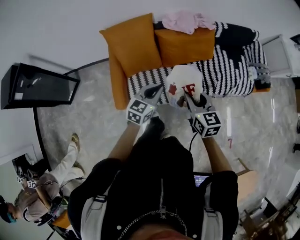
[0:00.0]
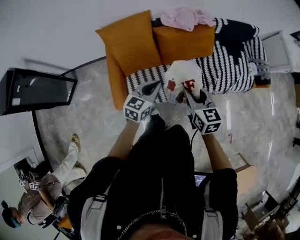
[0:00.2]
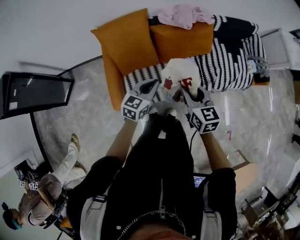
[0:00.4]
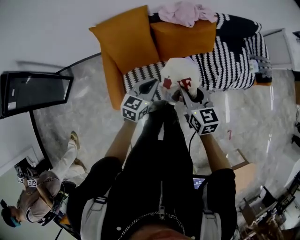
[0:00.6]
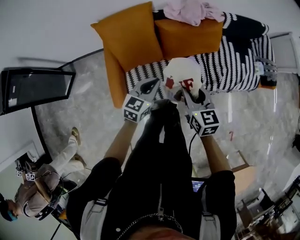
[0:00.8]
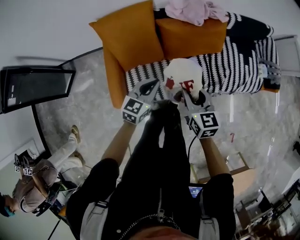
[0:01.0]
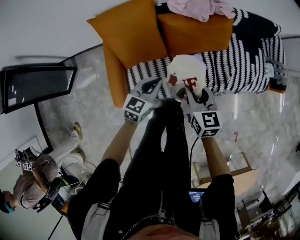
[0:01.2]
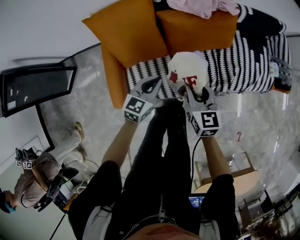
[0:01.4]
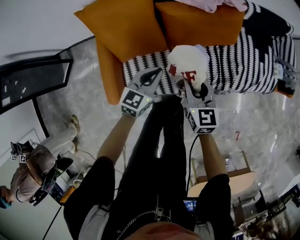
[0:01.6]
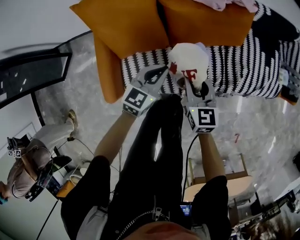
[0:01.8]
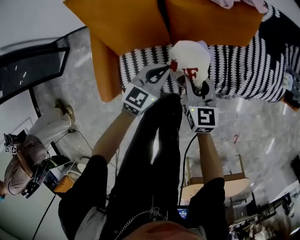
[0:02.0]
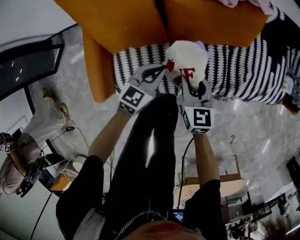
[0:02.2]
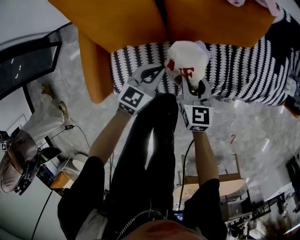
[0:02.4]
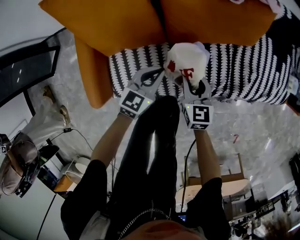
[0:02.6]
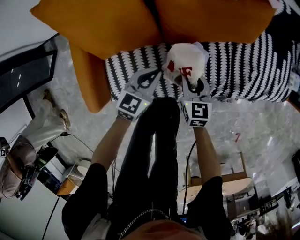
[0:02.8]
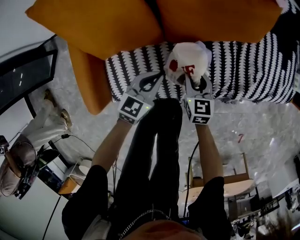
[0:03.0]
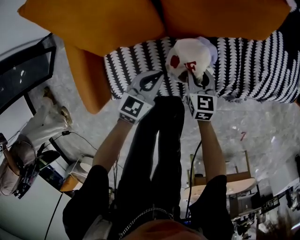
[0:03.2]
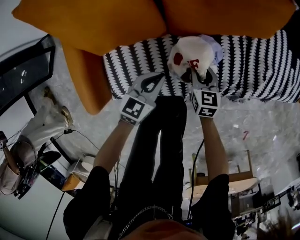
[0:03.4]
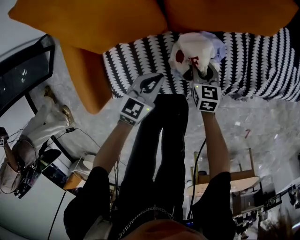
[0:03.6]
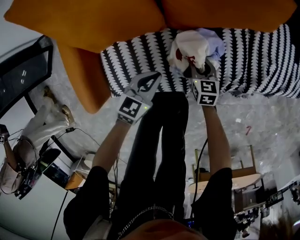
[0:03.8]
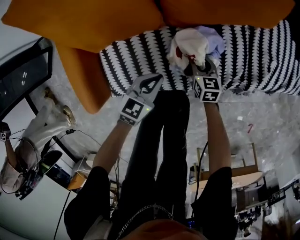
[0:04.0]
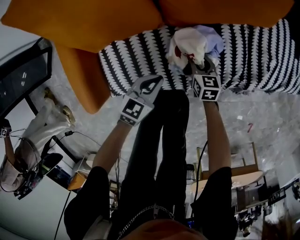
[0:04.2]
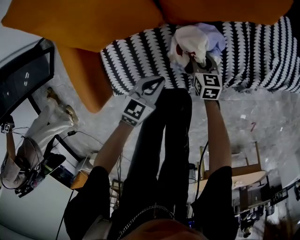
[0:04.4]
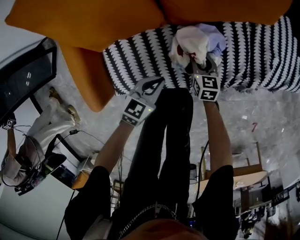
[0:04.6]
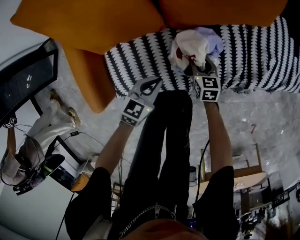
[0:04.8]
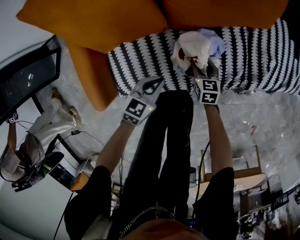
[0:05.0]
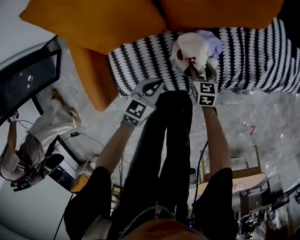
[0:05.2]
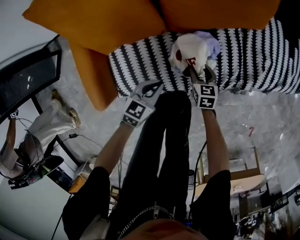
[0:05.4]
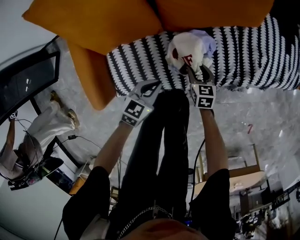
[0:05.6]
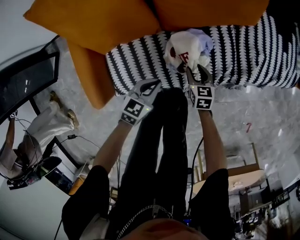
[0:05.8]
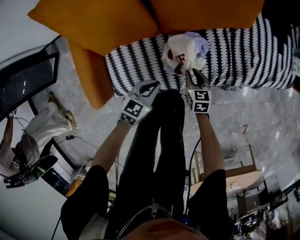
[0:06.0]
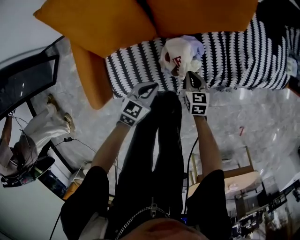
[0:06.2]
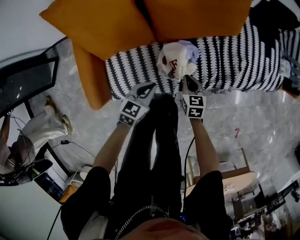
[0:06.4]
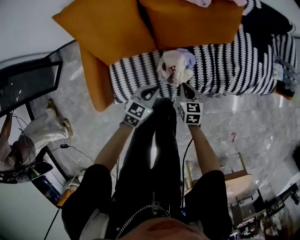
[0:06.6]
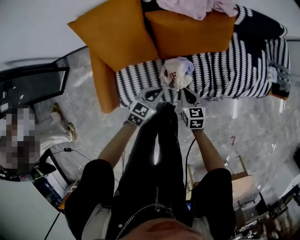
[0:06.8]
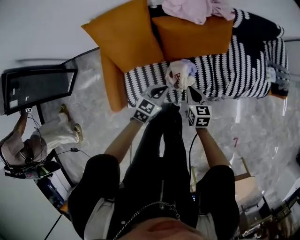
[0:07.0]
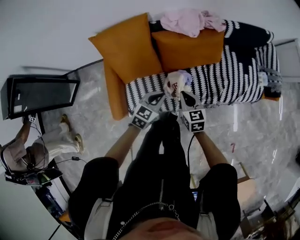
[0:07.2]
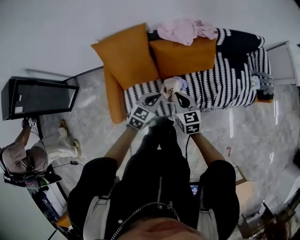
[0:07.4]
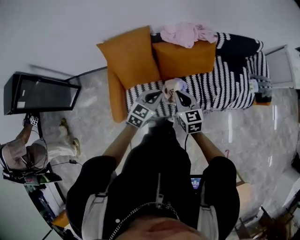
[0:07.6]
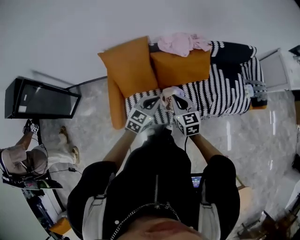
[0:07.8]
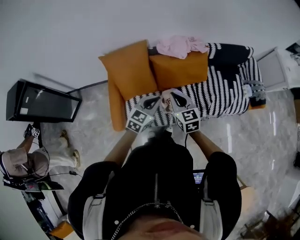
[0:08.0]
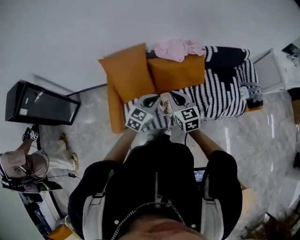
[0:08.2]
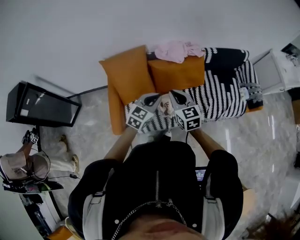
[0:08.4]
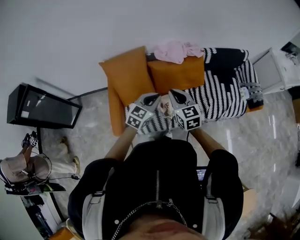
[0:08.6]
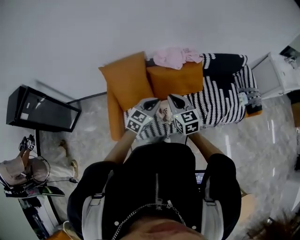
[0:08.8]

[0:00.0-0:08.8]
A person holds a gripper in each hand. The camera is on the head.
0.0 to 1.4 s: Both grippers move downward and forward, approximately 15 cm.
1.4 to 3.0 s: Both grippers move downward, roughly 30 cm.
3.0 to 4.4 s: The left gripper travels backward and downward by some 10 cm, while the right gripper travels downward by approximately 15 cm.
4.4 to 5.8 s: The grippers both shift upward by roughly 10 cm.
5.8 to 7.4 s: The grippers both shift upward by about 40 cm. The right gripper closes up.
7.4 to 8.8 s: Both grippers travel together upward, about 10 cm.

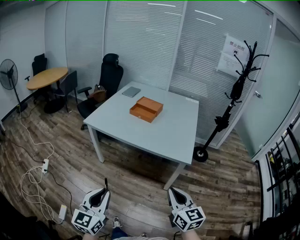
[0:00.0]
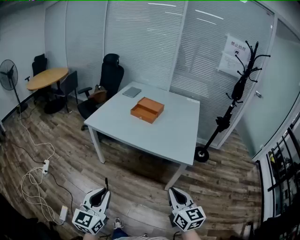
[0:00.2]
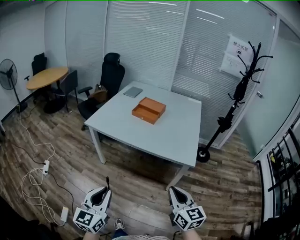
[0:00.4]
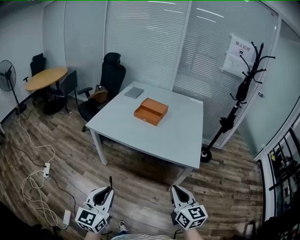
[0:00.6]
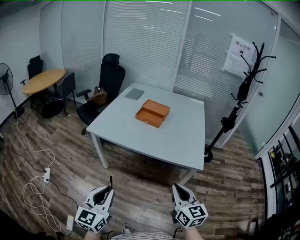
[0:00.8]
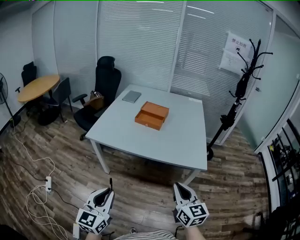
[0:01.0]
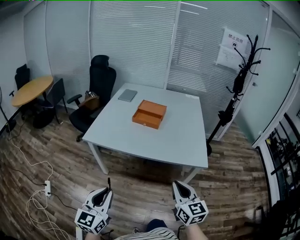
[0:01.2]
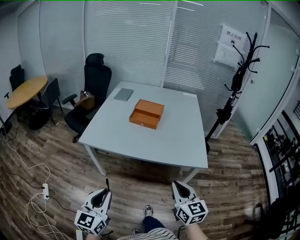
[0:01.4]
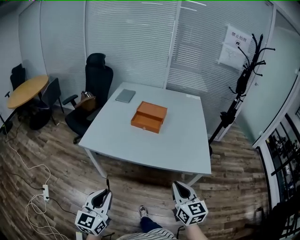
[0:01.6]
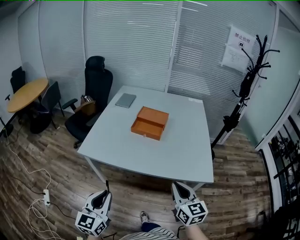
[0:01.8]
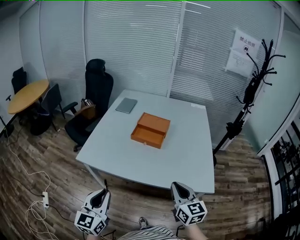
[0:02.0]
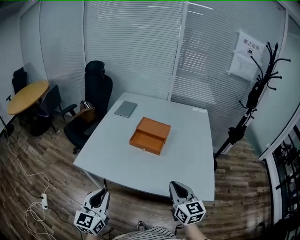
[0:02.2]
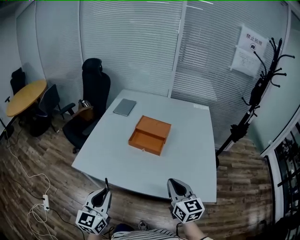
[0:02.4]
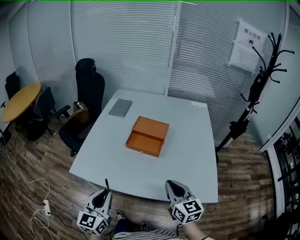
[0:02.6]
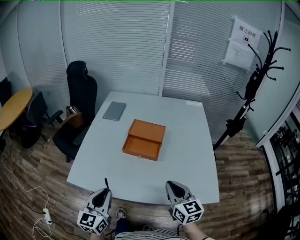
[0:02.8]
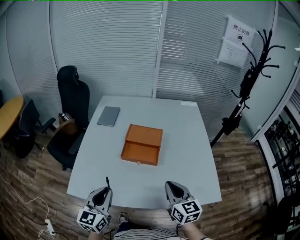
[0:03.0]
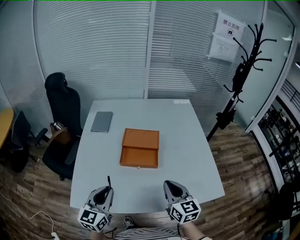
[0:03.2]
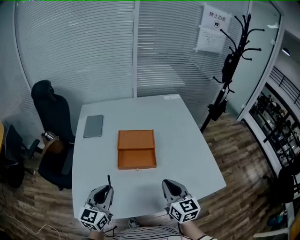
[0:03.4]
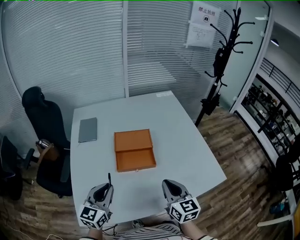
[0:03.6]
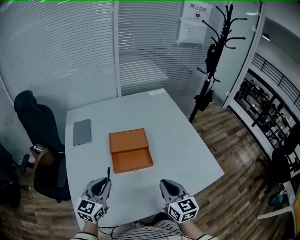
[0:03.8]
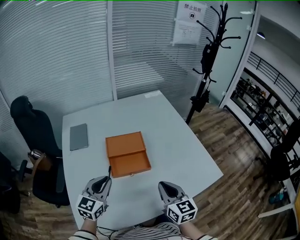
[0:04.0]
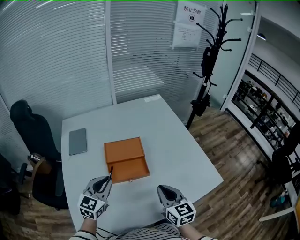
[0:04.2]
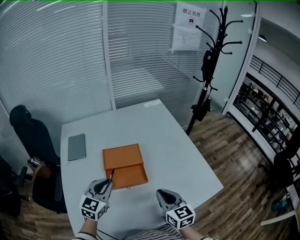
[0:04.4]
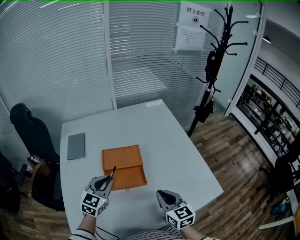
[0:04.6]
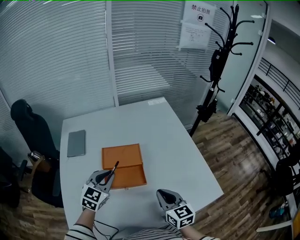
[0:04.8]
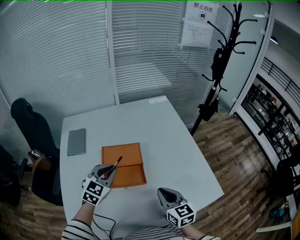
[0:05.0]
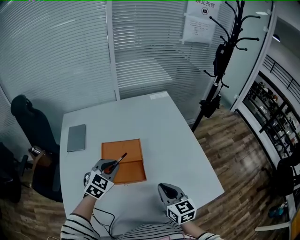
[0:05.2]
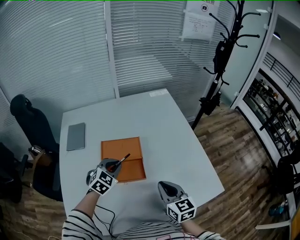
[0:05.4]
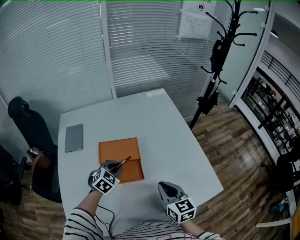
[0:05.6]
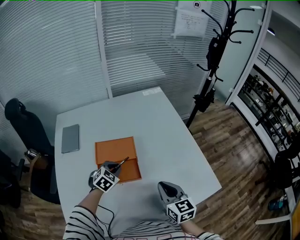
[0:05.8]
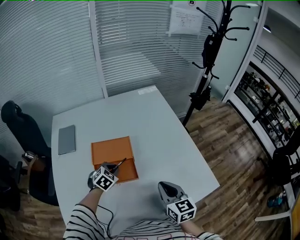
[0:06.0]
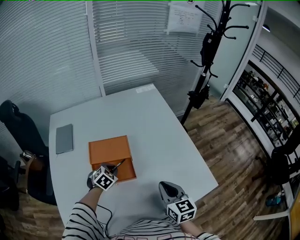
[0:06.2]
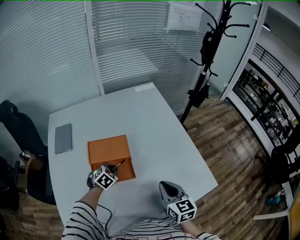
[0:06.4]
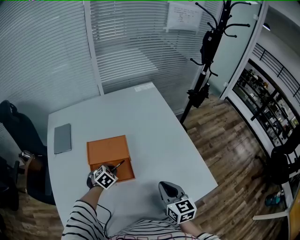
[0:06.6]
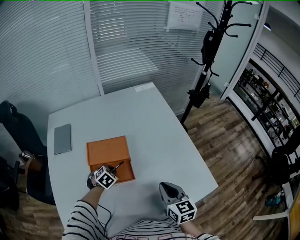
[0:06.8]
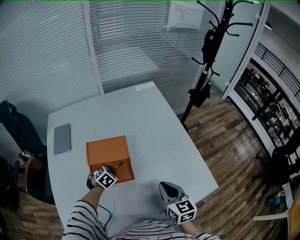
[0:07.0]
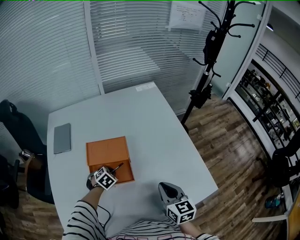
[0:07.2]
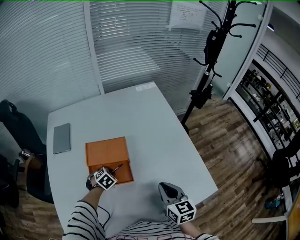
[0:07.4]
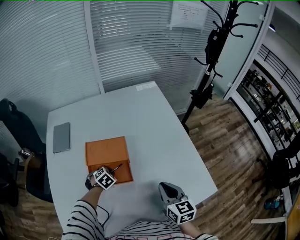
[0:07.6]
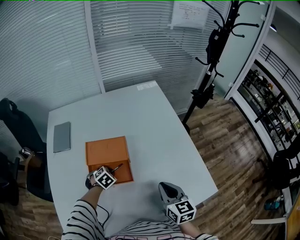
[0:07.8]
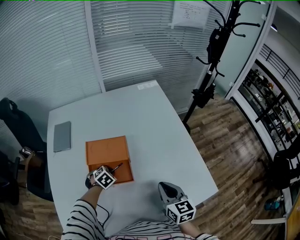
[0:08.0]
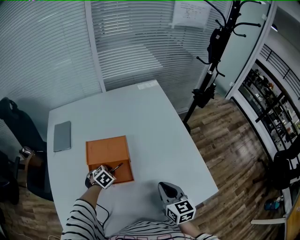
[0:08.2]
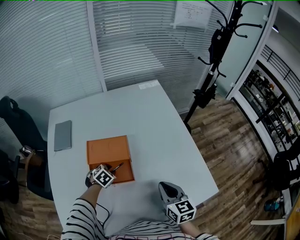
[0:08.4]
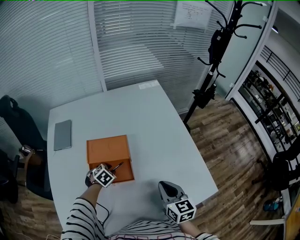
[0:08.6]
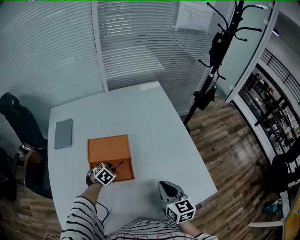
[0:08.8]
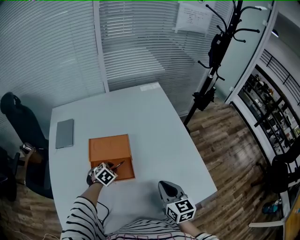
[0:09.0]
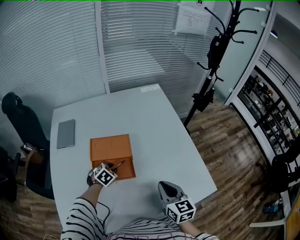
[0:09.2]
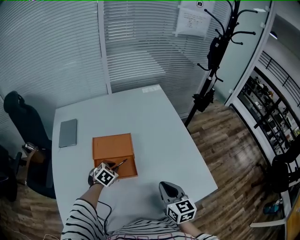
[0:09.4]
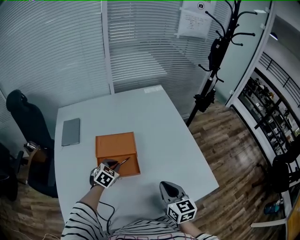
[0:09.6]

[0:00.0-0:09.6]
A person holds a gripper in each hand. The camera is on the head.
0.0 to 1.6 s: Both grippers travel together forward and to the left, about 25 cm.
1.6 to 3.2 s: Both grippers move forward, roughly 40 cm.
3.2 to 4.8 s: The left gripper goes some 25 cm forward, and swivels roughly 30 degrees; the right gripper goes some 10 cm forward.
4.8 to 6.4 s: The right gripper travels to the right by some 5 cm. Meanwhile the left gripper goes about 20 cm downward, and tilts its fingers about 40 degrees downward.
6.4 to 8.0 s: The grippers stay close to where they were, moving slightly.
8.0 to 9.6 s: The left gripper shifts some 10 cm upward, and swivels approximately 20 degrees, while the right gripper shifts some 5 cm backward.

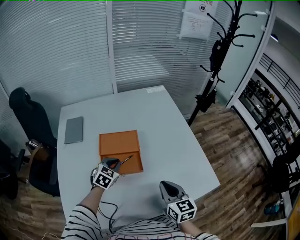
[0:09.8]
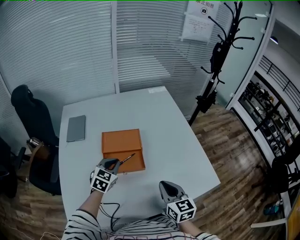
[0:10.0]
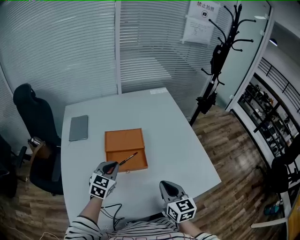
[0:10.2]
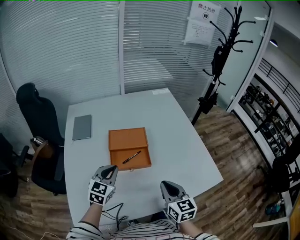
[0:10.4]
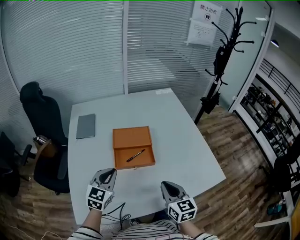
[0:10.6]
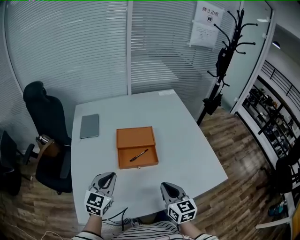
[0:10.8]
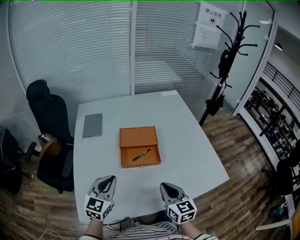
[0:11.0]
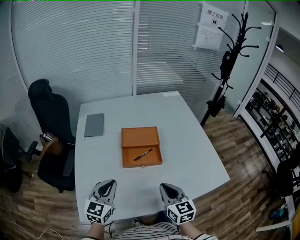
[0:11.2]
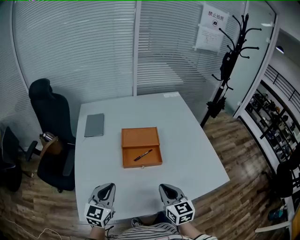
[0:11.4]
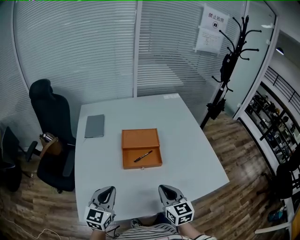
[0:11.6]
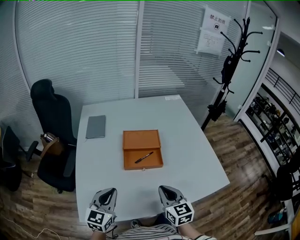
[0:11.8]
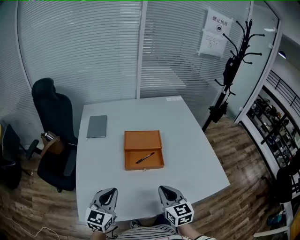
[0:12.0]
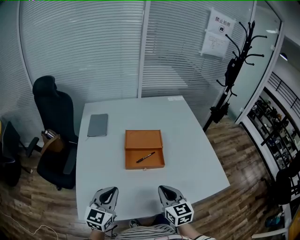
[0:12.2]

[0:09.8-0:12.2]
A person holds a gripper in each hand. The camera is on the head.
9.8 to 11.0 s: The right gripper moves to the left and backward, some 10 cm, while the left gripper shifts approximately 25 cm backward, upward and to the left, and changes its angle by about 30 degrees.
11.0 to 12.2 s: The left gripper ends up roughly 5 cm from where it was.

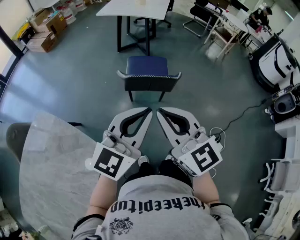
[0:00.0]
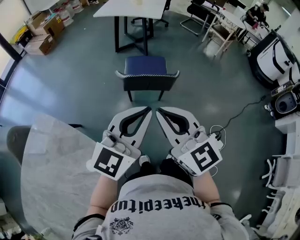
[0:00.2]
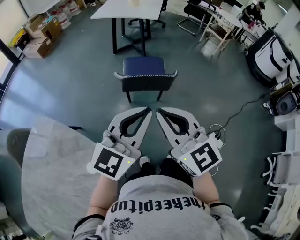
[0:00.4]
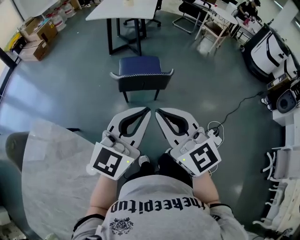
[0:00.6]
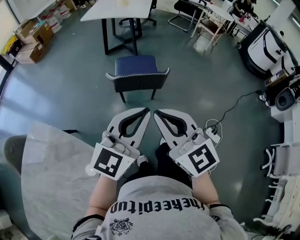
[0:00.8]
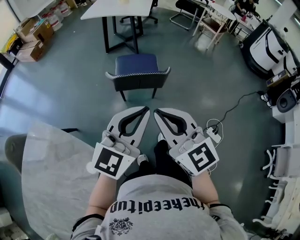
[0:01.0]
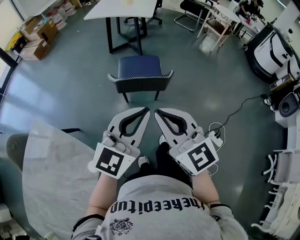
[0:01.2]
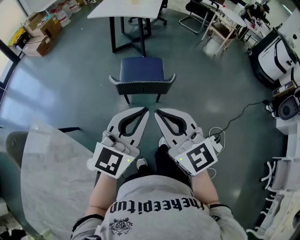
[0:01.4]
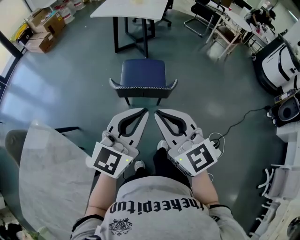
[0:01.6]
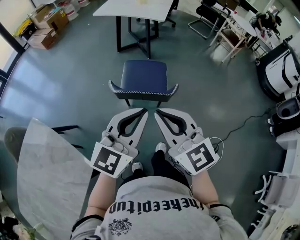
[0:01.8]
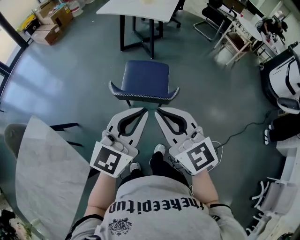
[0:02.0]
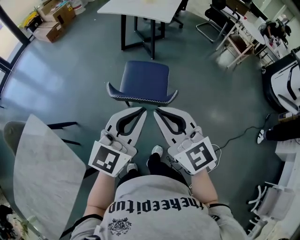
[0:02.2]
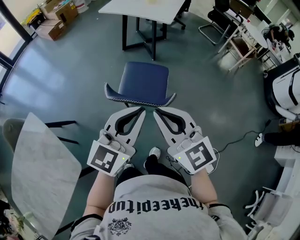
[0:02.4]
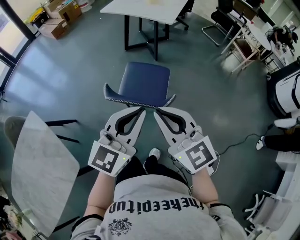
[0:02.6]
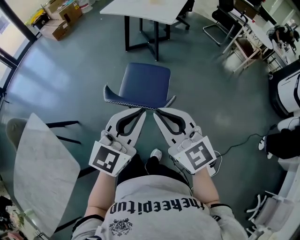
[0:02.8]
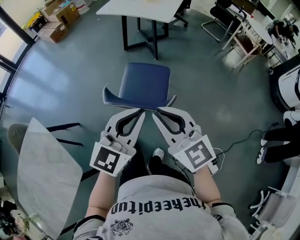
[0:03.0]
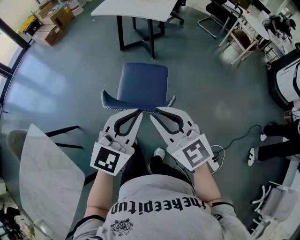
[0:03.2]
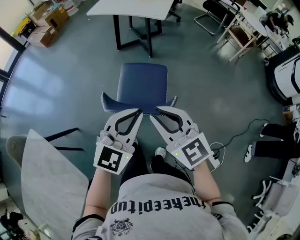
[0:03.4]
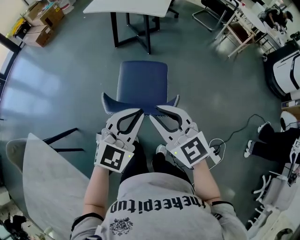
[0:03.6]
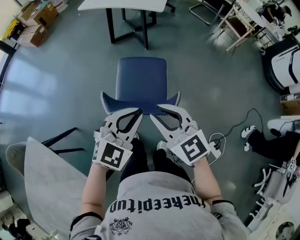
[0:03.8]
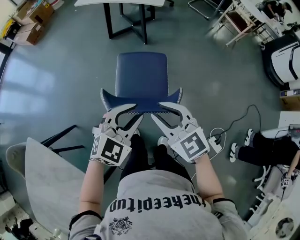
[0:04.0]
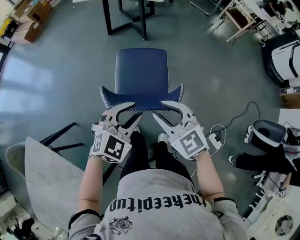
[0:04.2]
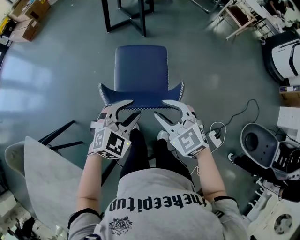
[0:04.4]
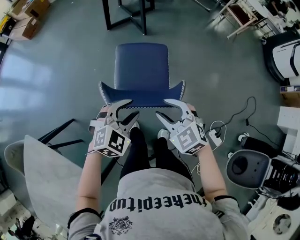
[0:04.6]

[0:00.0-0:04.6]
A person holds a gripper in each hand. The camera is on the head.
0.0 to 1.6 s: Both grippers move forward and to the right, about 10 cm.
1.6 to 3.0 s: The two grippers go some 15 cm forward and to the right.
3.0 to 4.6 s: The right gripper is displaced downward by some 20 cm, points its fingers some 30 degrees further downward, and opens its fingers; the left gripper goes roughly 20 cm downward and to the left, tilts its fingers roughly 30 degrees downward, and opens its fingers.
